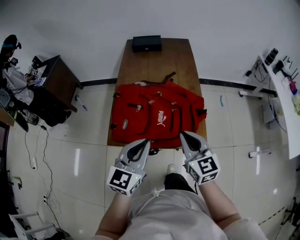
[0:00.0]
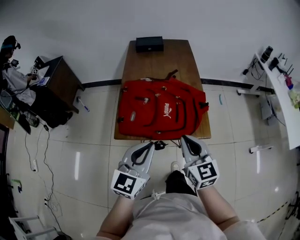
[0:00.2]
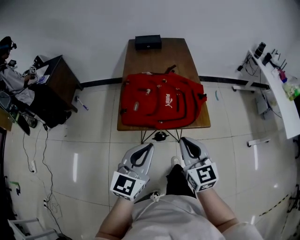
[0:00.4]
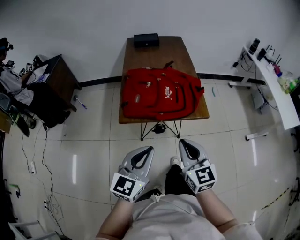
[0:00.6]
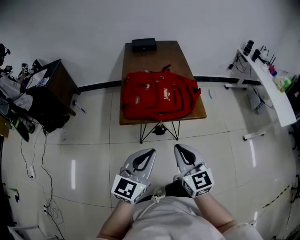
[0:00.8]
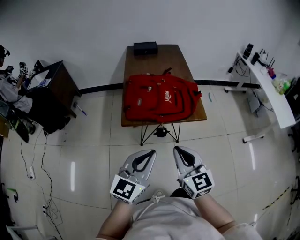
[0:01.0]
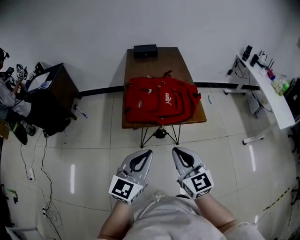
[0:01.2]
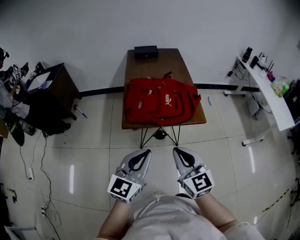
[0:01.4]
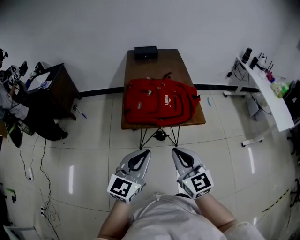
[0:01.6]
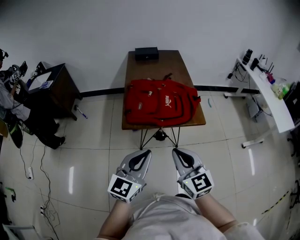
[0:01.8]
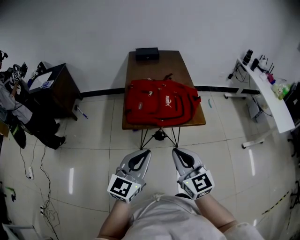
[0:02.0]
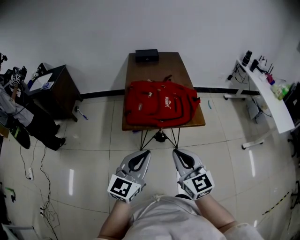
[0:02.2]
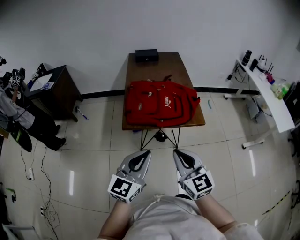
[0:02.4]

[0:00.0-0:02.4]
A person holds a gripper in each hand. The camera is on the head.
0.0 to 1.2 s: Both grippers move backward, roughly 30 cm.
1.2 to 2.4 s: The grippers stay close to where they were, moving slightly.

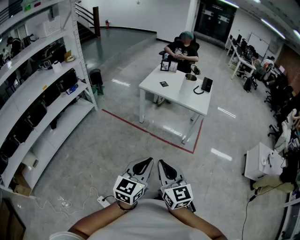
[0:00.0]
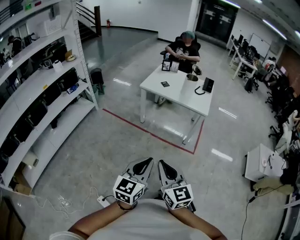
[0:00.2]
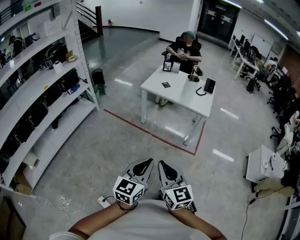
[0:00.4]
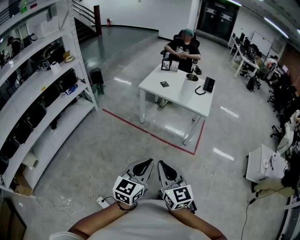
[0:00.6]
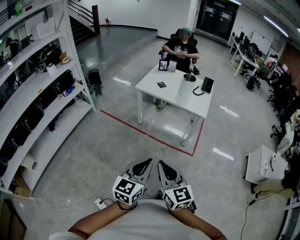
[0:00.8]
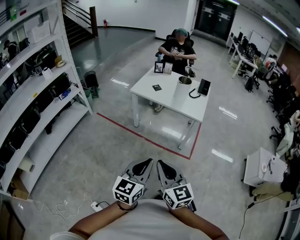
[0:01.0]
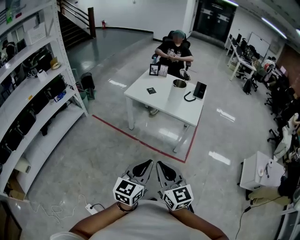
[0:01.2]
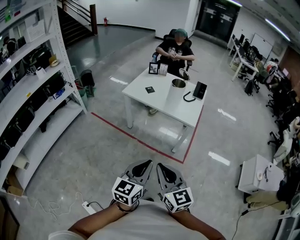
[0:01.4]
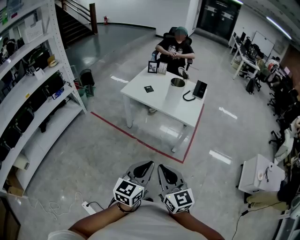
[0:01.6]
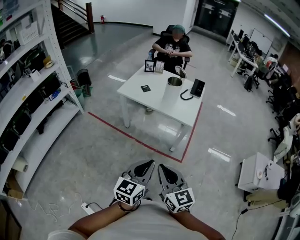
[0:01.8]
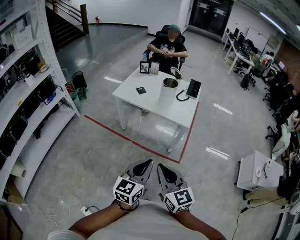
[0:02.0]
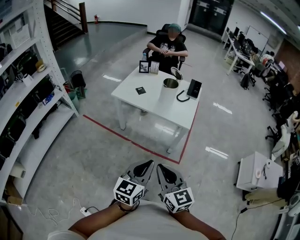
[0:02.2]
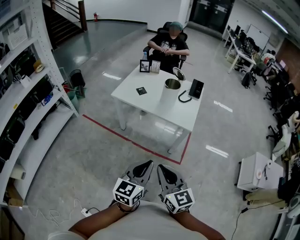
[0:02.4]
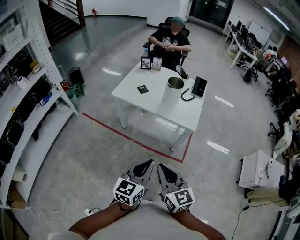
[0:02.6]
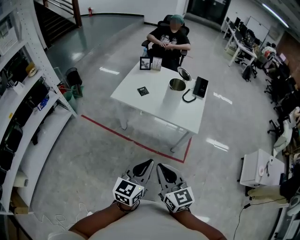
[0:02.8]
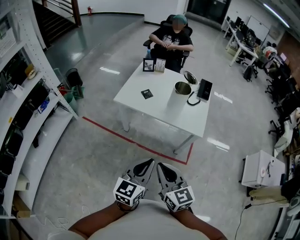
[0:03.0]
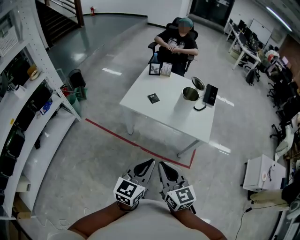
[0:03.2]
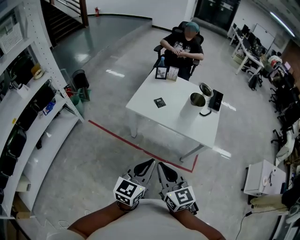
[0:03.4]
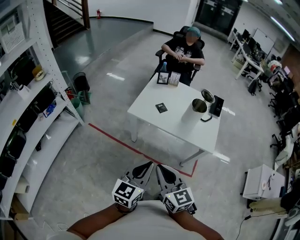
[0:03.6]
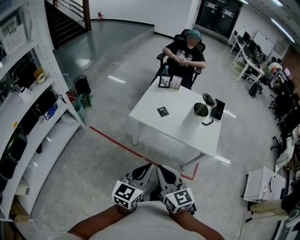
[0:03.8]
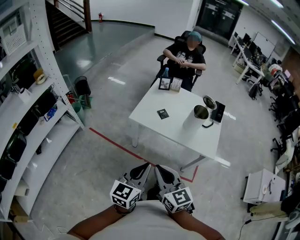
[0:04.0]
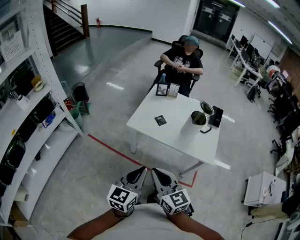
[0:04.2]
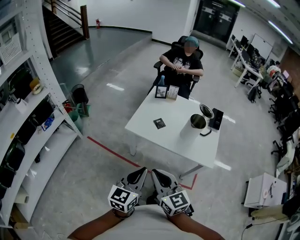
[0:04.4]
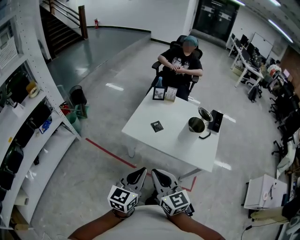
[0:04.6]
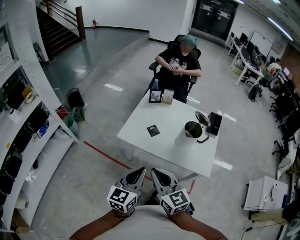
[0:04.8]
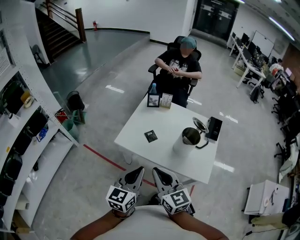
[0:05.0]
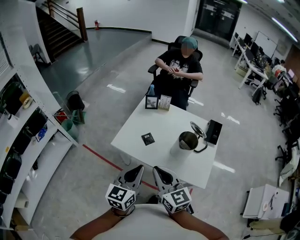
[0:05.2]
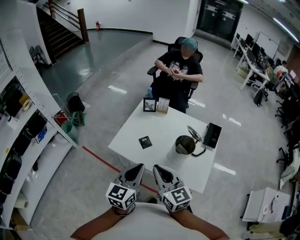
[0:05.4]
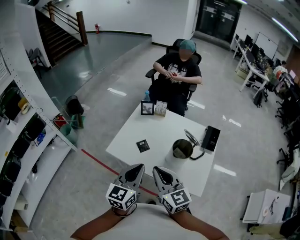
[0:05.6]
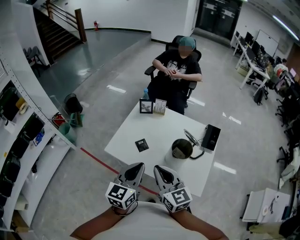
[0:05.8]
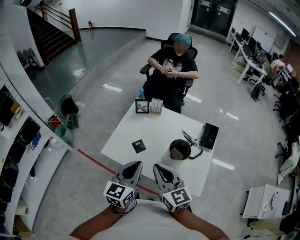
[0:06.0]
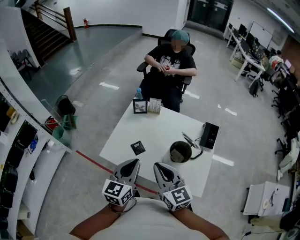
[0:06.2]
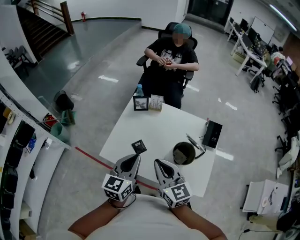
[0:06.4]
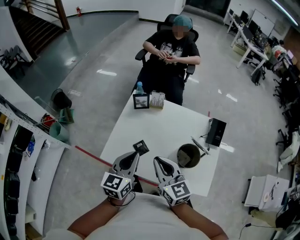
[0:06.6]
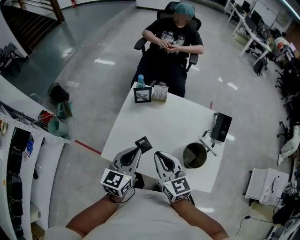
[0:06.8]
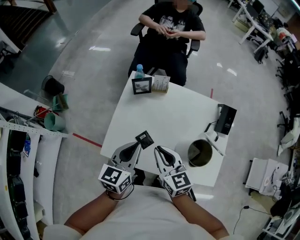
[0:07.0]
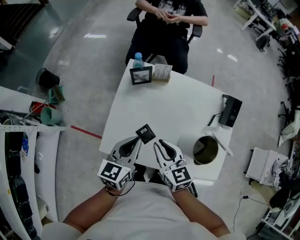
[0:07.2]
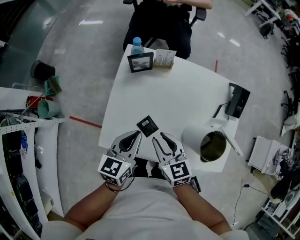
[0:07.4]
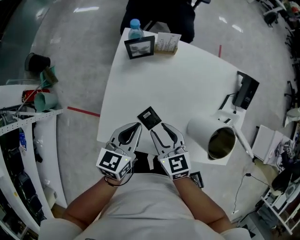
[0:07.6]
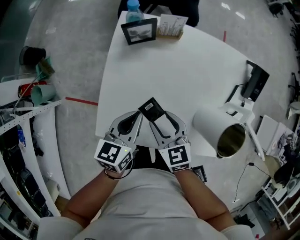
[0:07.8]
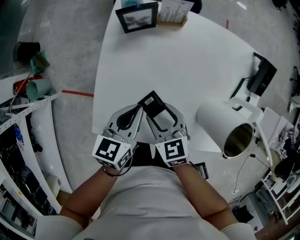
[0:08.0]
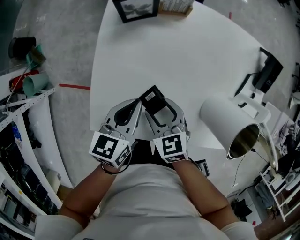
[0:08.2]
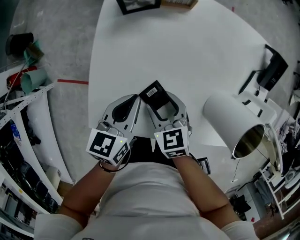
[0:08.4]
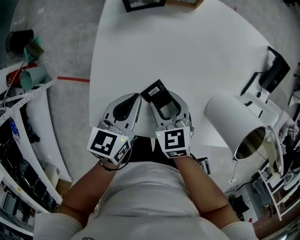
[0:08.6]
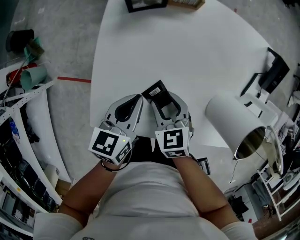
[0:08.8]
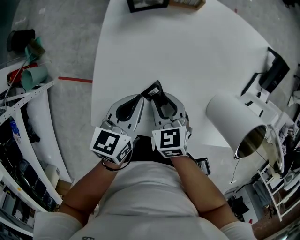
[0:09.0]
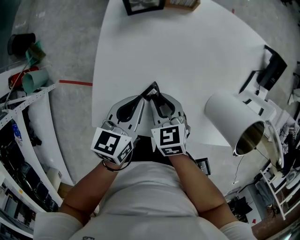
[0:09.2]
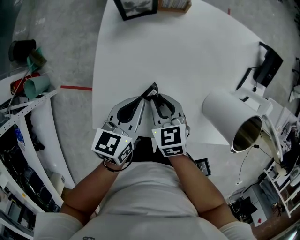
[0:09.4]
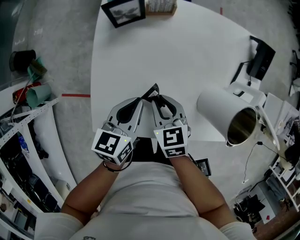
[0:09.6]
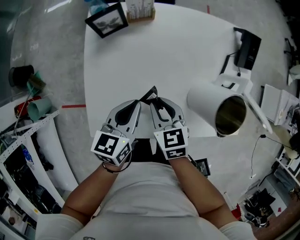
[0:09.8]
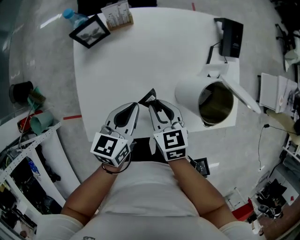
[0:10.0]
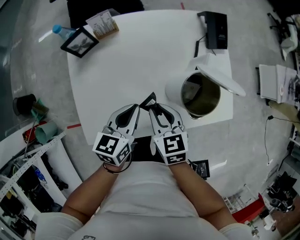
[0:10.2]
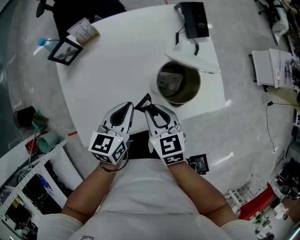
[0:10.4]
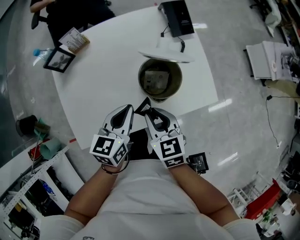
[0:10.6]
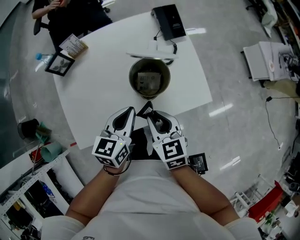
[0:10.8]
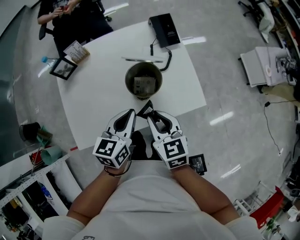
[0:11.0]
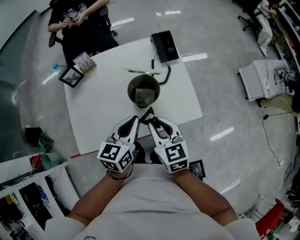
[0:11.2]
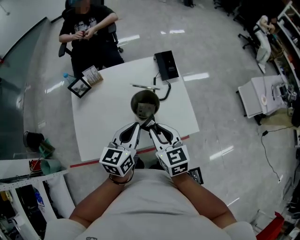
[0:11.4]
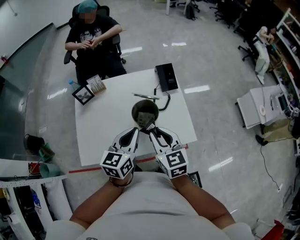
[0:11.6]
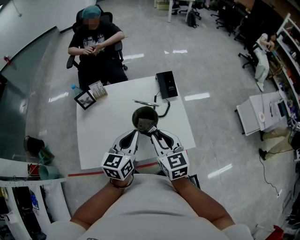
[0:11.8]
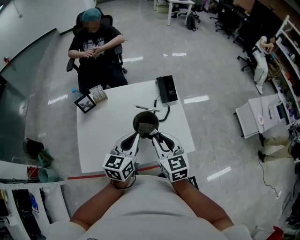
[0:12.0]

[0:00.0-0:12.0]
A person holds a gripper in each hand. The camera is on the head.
0.0 to 1.6 s: The grippers both shift to the right and forward by some 25 cm.
1.6 to 3.0 s: The grippers both shift forward by some 20 cm.
3.0 to 4.4 s: Both grippers travel together forward and to the left, roughly 20 cm.
4.4 to 6.0 s: The two grippers go about 30 cm forward and to the right.
6.0 to 7.6 s: The left gripper moves forward and downward, approximately 30 cm, and rotates about 30 degrees. Meanwhile the right gripper heads downward and forward, covering roughly 30 cm, turns by about 30 degrees, and opens.
7.6 to 9.0 s: Both grippers travel together downward, roughly 10 cm. The right gripper opens, then closes once more.
9.0 to 10.4 s: Both grippers travel together to the right and upward, roughly 20 cm. The left gripper swivels roughly 30 degrees. Meanwhile the right gripper rotates some 30 degrees.
10.4 to 12.0 s: The grippers both shift upward and to the right by about 20 cm. The right gripper swivels roughly 20 degrees.

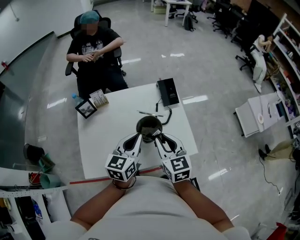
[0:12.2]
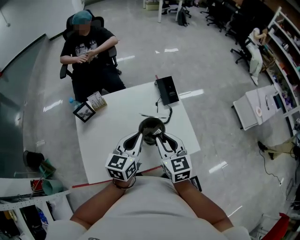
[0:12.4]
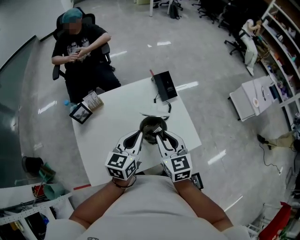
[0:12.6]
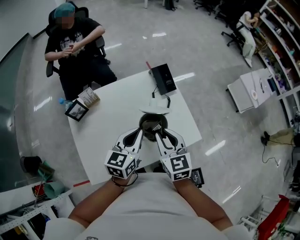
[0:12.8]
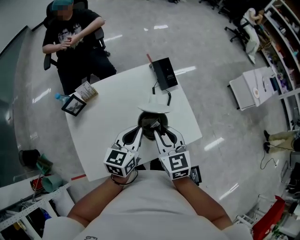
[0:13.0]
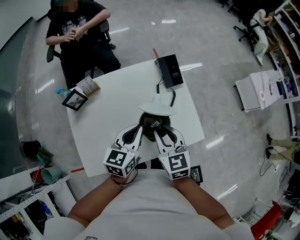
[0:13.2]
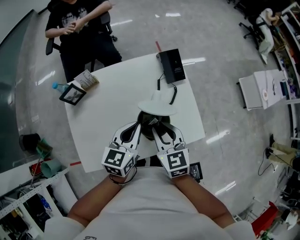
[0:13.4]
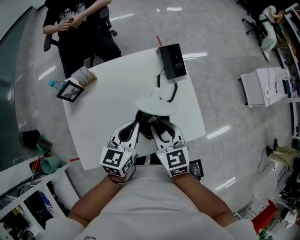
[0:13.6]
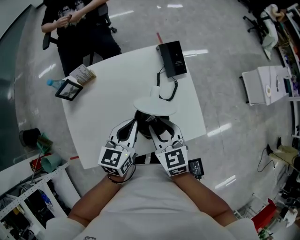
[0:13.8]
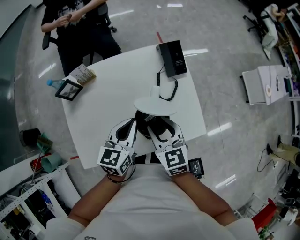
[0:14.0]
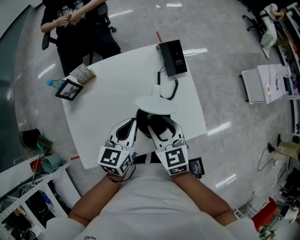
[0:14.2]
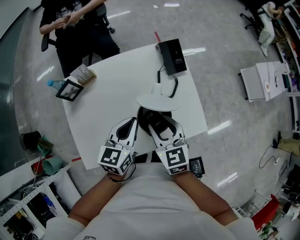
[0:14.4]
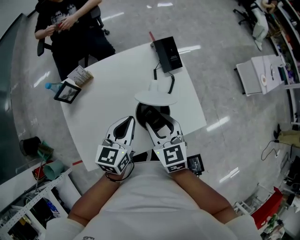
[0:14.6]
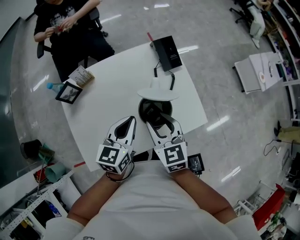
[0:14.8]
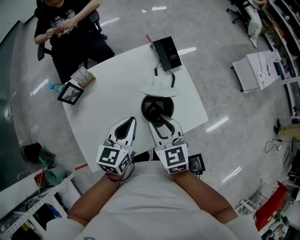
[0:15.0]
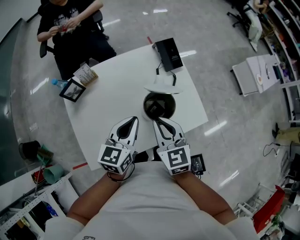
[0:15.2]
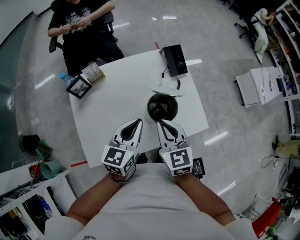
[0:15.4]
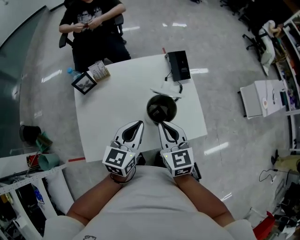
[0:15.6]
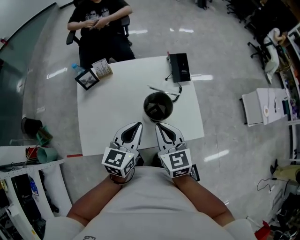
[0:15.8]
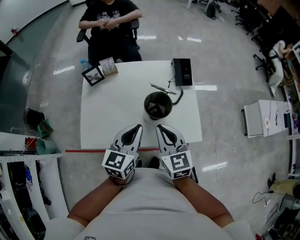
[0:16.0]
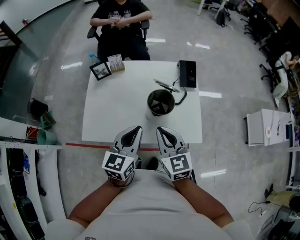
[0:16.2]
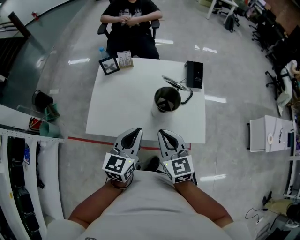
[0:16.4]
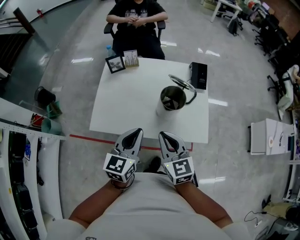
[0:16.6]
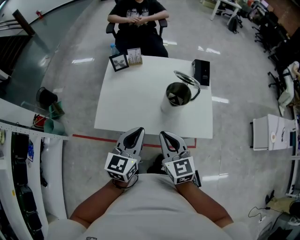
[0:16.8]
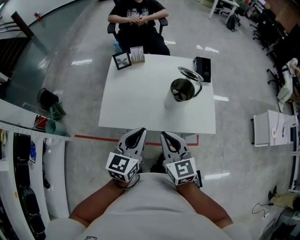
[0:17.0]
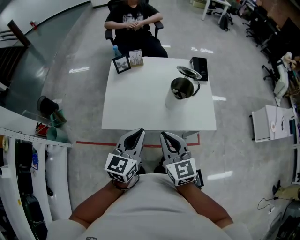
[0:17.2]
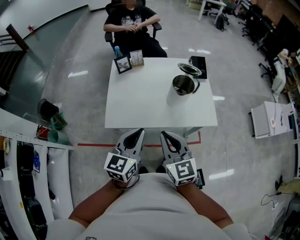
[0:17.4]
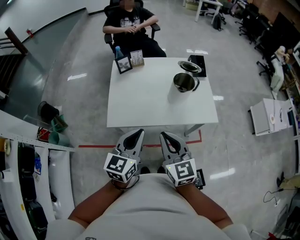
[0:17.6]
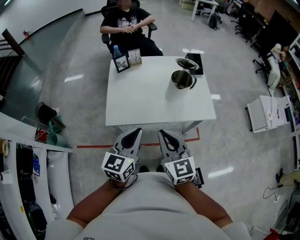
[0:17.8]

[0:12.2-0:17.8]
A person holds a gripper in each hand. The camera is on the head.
12.2 to 13.6 s: Both grippers travel together downward, some 10 cm.
13.6 to 15.0 s: The right gripper shifts by roughly 5 cm. The left gripper moves some 5 cm.
15.0 to 16.4 s: The left gripper moves approximately 20 cm, and swivels some 30 degrees; the right gripper moves approximately 15 cm, swivels roughly 30 degrees, and closes up.
16.4 to 17.8 s: The grippers both shift to the left and backward by approximately 20 cm.

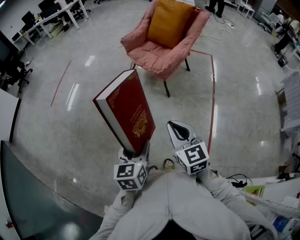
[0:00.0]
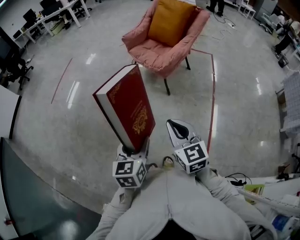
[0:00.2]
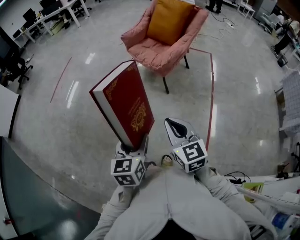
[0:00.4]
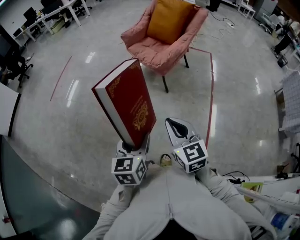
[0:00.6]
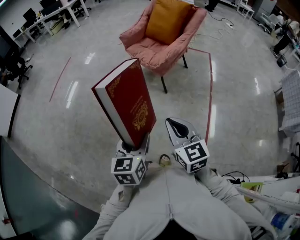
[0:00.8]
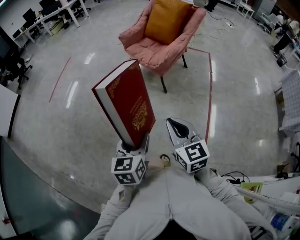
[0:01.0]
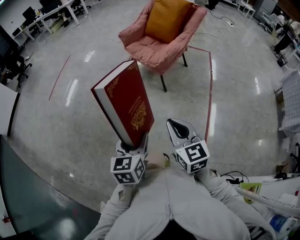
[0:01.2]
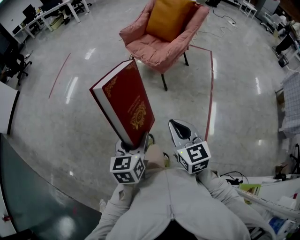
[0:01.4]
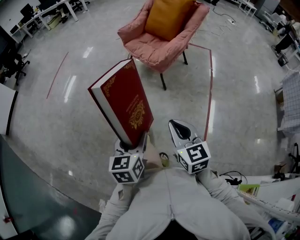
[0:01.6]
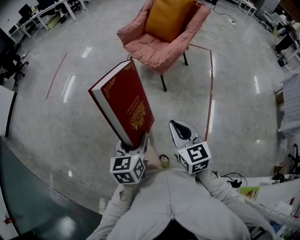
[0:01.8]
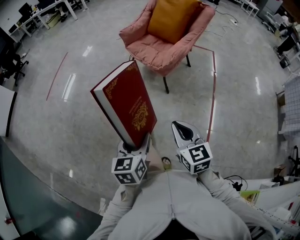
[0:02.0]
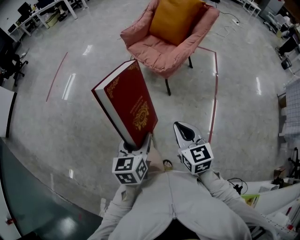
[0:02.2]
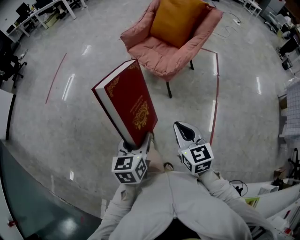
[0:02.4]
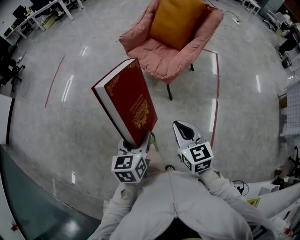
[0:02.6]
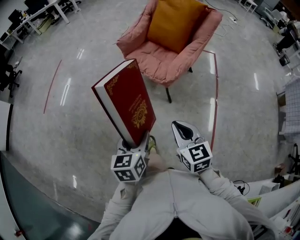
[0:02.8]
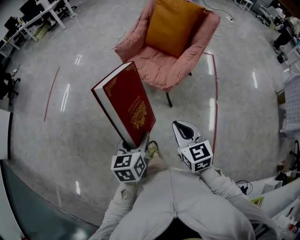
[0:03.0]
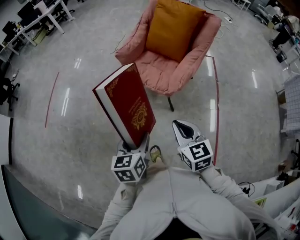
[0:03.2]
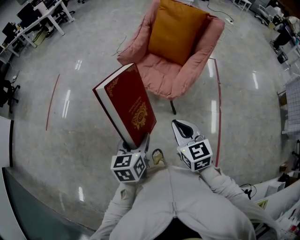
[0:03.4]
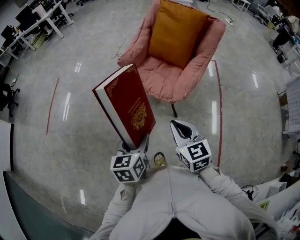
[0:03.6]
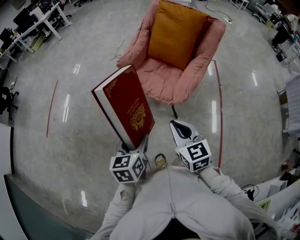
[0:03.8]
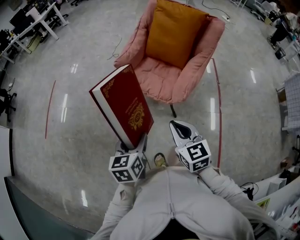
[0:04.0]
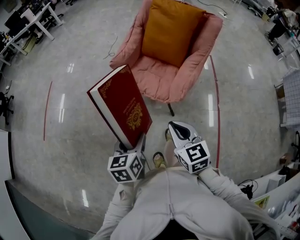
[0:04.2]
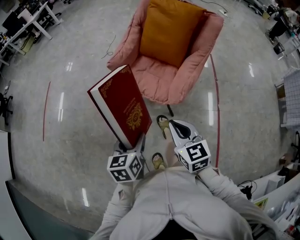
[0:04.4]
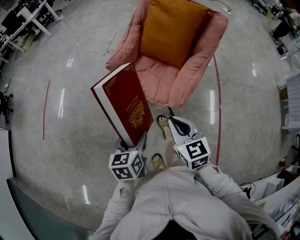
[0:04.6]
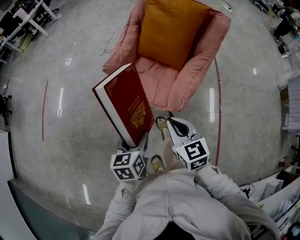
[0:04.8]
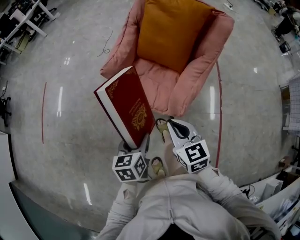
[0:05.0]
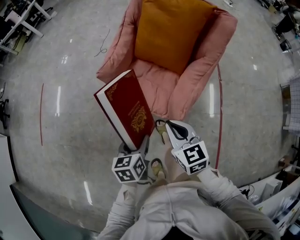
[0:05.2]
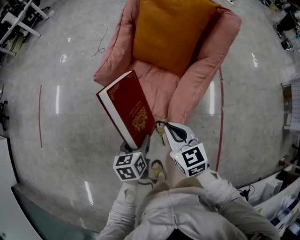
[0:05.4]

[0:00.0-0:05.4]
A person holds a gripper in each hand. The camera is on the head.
0.0 to 1.4 s: The right gripper moves about 5 cm.
1.4 to 2.8 s: Both grippers move forward, about 25 cm.
2.8 to 4.0 s: Both grippers travel together forward, about 20 cm.
4.0 to 5.4 s: The left gripper goes approximately 25 cm forward, downward and to the right, while the right gripper moves forward and downward, roughly 25 cm.
